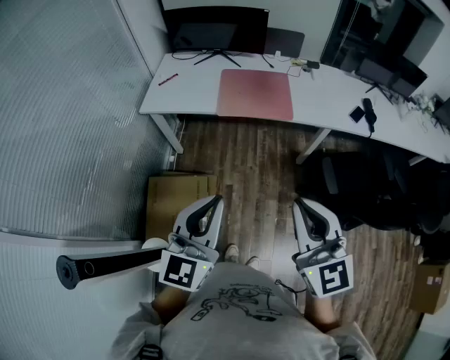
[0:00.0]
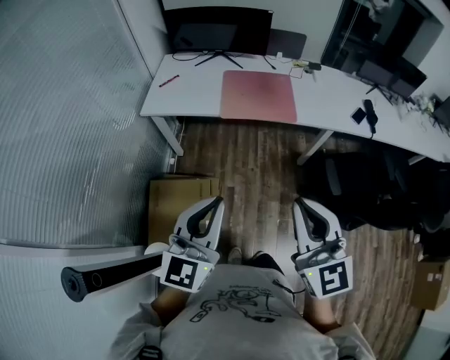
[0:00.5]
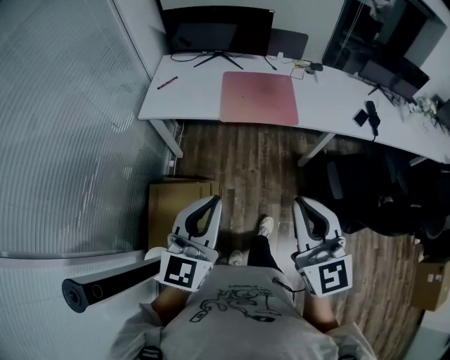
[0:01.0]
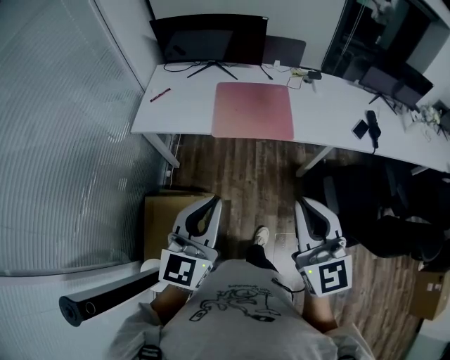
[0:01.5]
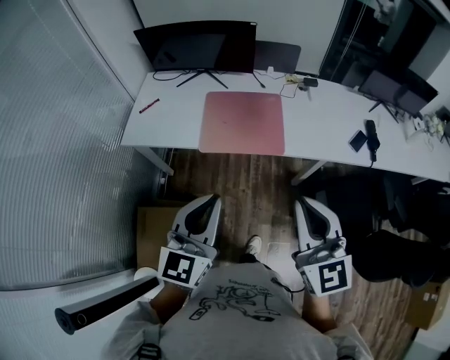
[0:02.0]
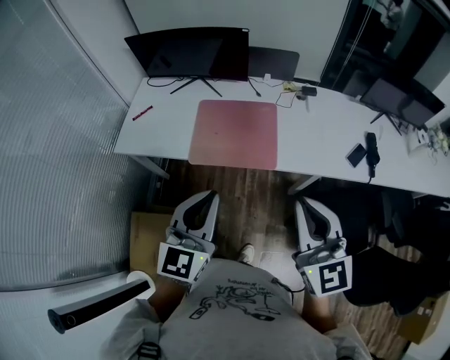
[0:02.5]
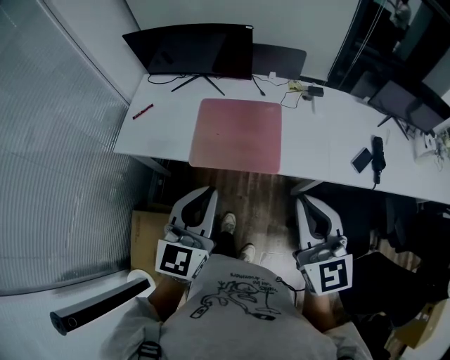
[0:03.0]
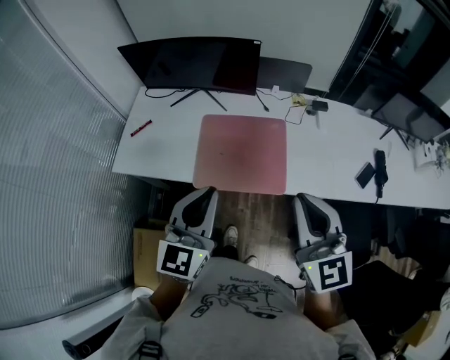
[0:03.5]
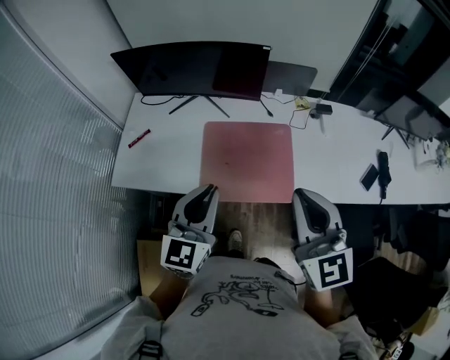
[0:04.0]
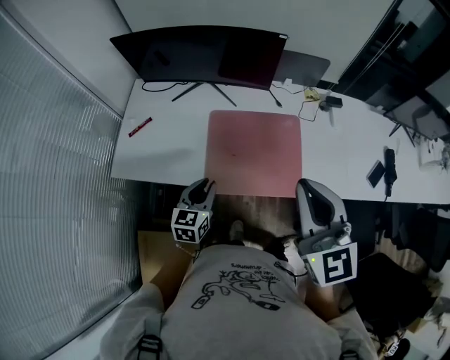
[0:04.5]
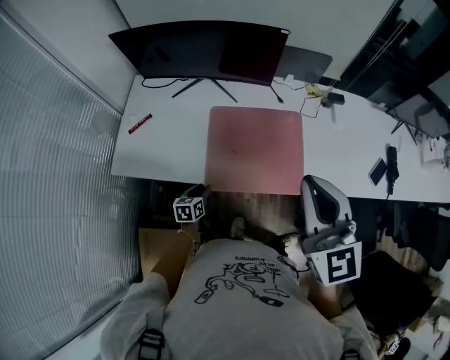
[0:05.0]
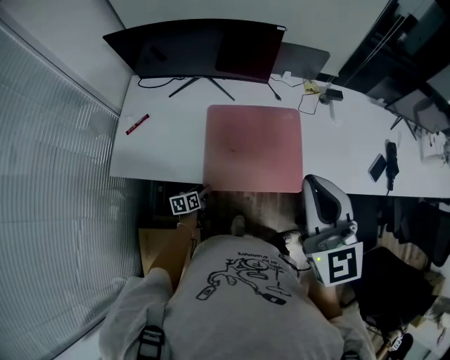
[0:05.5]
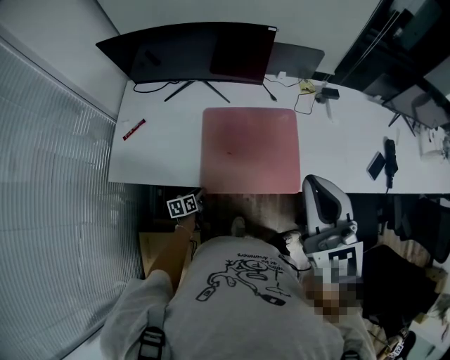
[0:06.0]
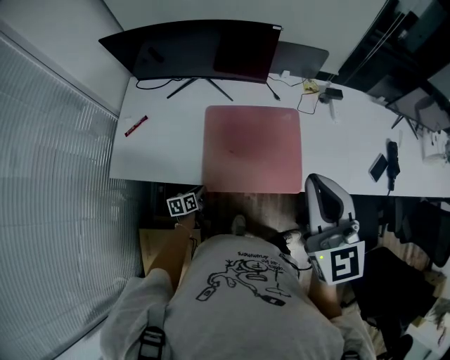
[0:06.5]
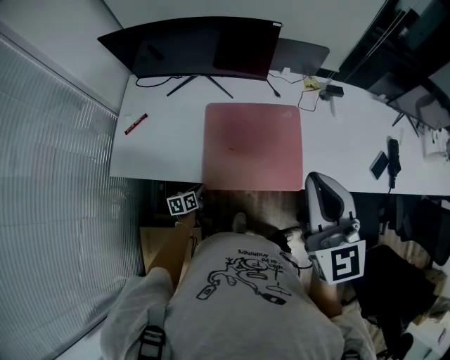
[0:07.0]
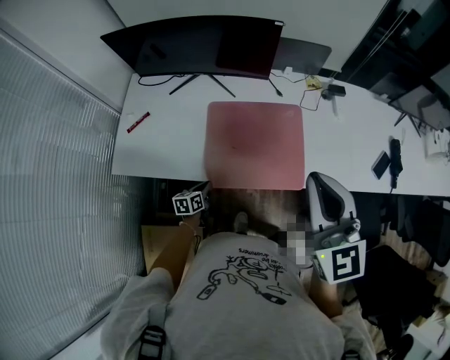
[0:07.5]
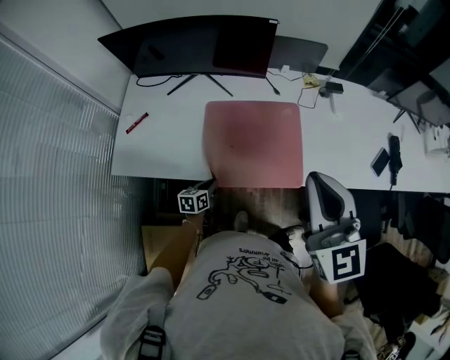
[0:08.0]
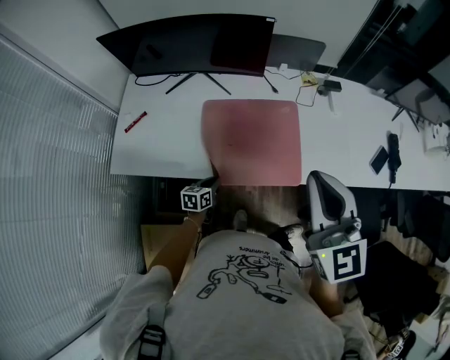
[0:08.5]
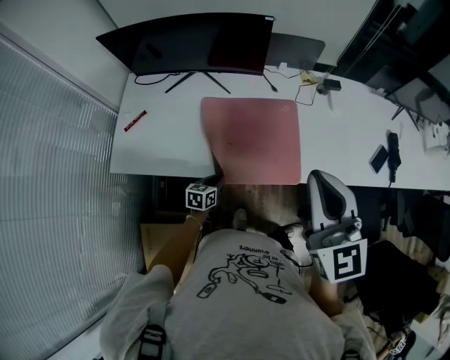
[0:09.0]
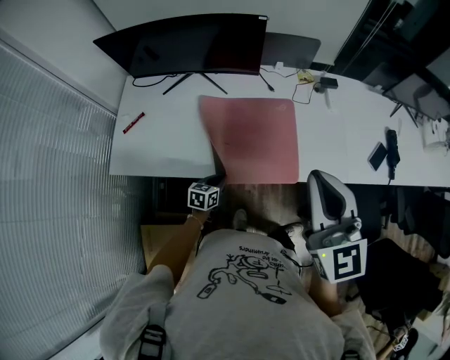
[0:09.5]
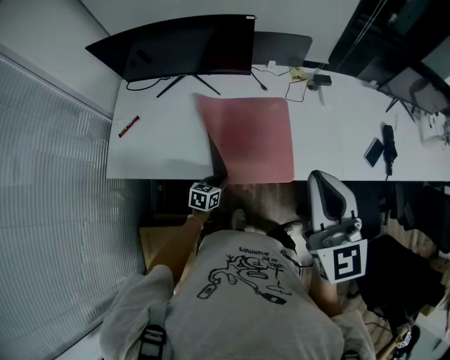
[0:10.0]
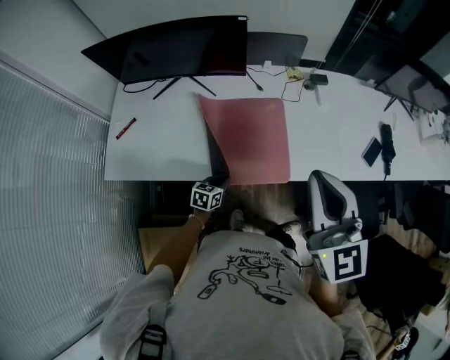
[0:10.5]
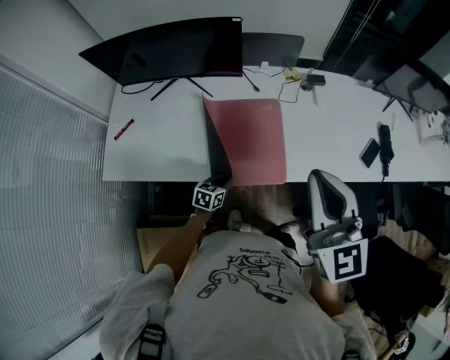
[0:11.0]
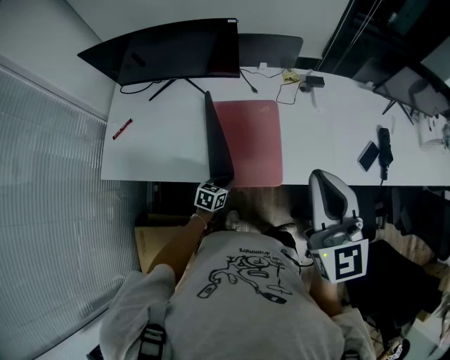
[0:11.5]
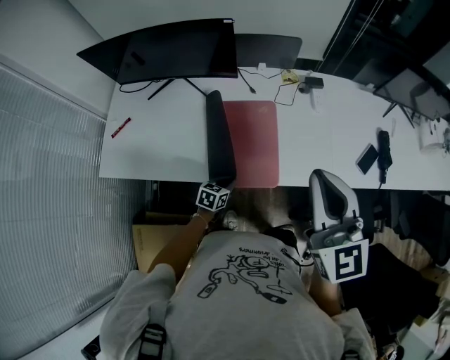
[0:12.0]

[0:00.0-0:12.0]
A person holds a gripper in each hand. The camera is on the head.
0:00.0 to 0:02.0: Both grippers travel together forward, about 25 cm.
0:02.0 to 0:04.0: The two grippers go roughly 30 cm forward.
0:04.0 to 0:06.0: The left gripper goes about 40 cm downward, tilts its fingers some 40 degrees downward, and opens, then closes once more. Meanwhile the right gripper changes place by approximately 5 cm.
0:06.0 to 0:08.0: The left gripper shifts approximately 5 cm to the right.
0:08.0 to 0:10.0: The right gripper moves some 5 cm. Meanwhile the left gripper heads to the right, covering some 10 cm.
0:10.0 to 0:12.0: The grippers both shift to the right by roughly 10 cm.

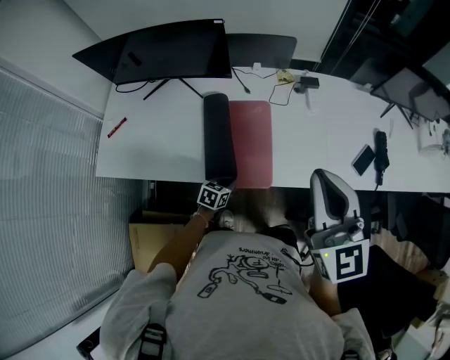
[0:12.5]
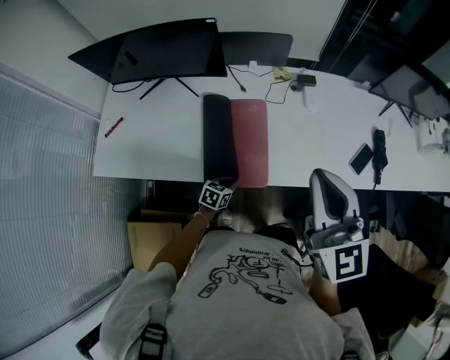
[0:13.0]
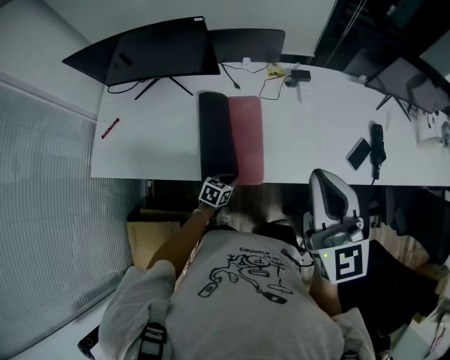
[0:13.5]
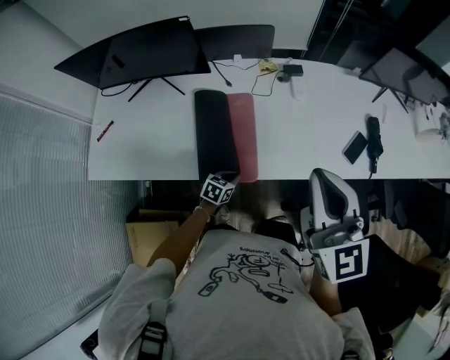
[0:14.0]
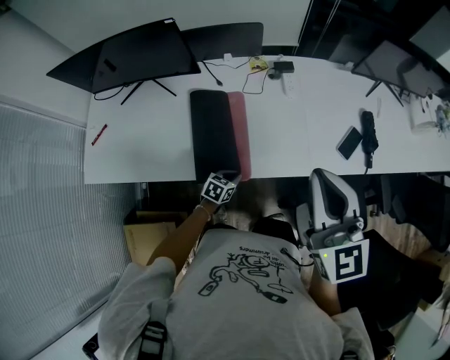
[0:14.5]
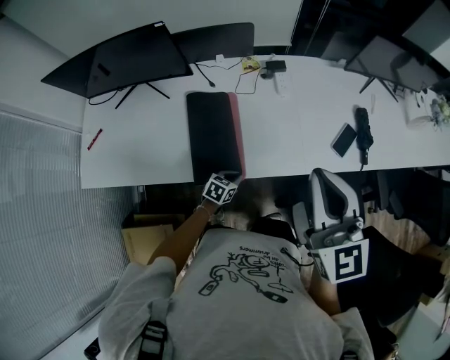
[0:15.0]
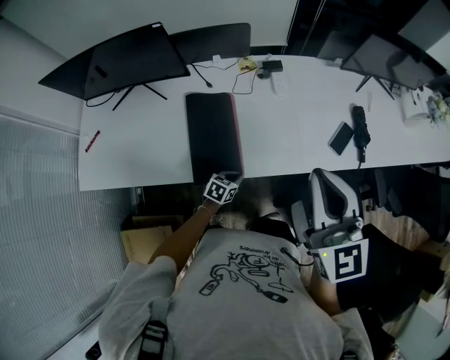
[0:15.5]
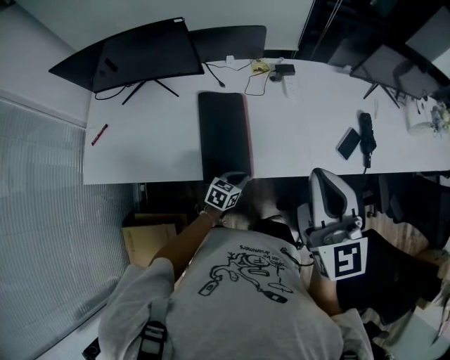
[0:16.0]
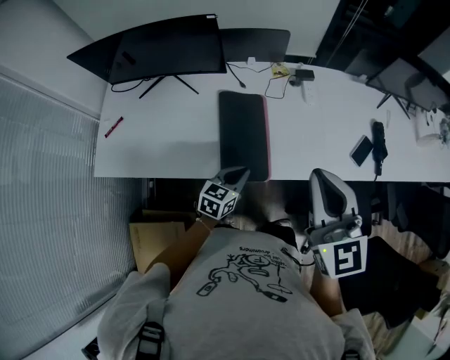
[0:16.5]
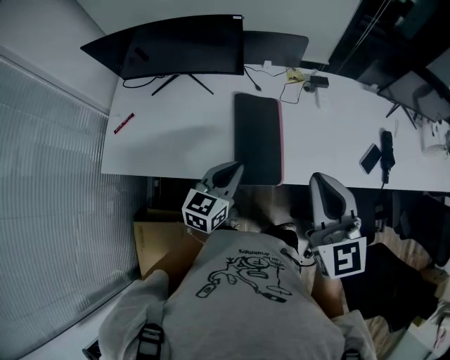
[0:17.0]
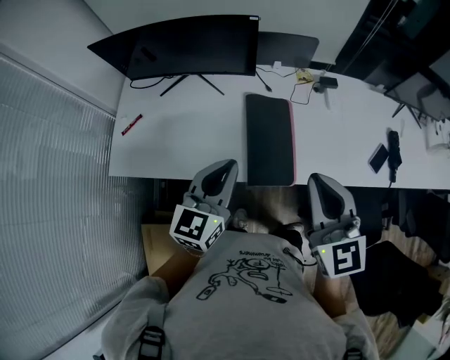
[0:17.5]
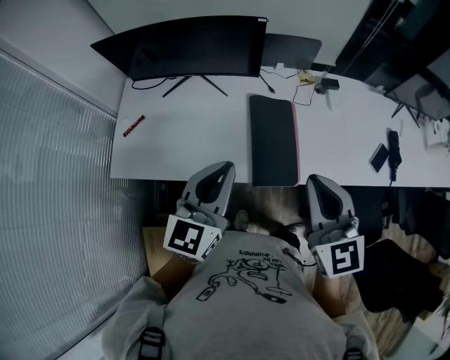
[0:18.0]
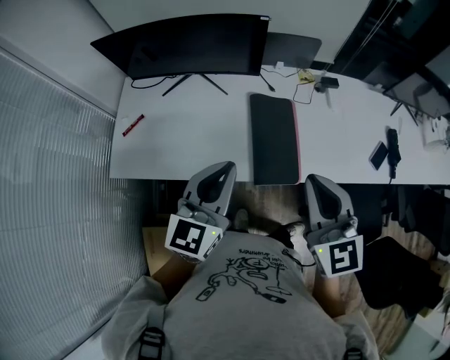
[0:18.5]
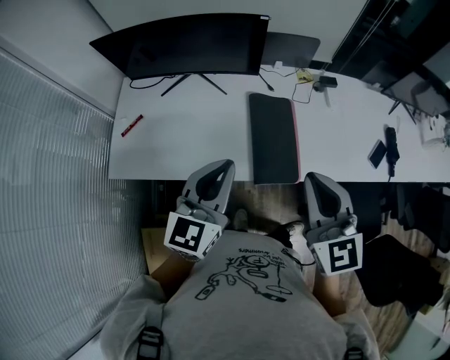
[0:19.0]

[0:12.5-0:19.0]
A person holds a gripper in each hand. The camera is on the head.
0:12.5 to 0:14.5: Both grippers move to the right, approximately 10 cm.
0:14.5 to 0:17.0: The left gripper shifts some 30 cm upward and to the left, and points its fingers about 30 degrees further upward. The right gripper is displaced to the left by about 15 cm.
0:17.0 to 0:19.0: The right gripper goes approximately 10 cm to the left. Meanwhile the left gripper goes roughly 20 cm upward and to the left.

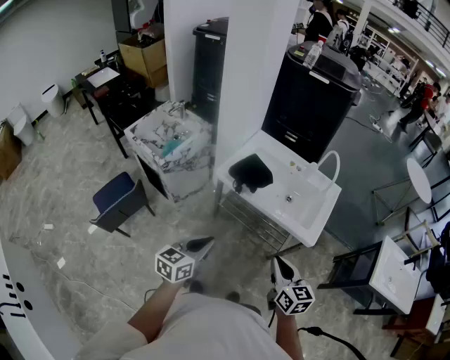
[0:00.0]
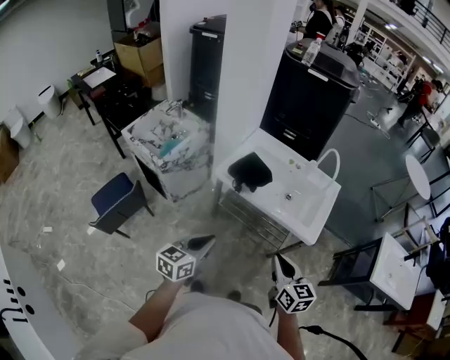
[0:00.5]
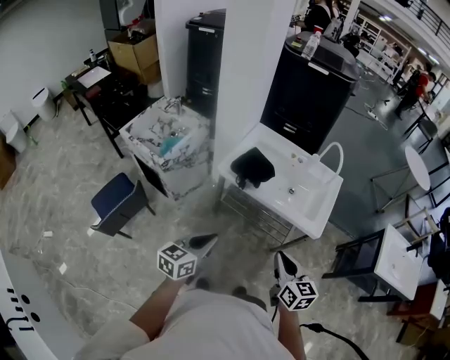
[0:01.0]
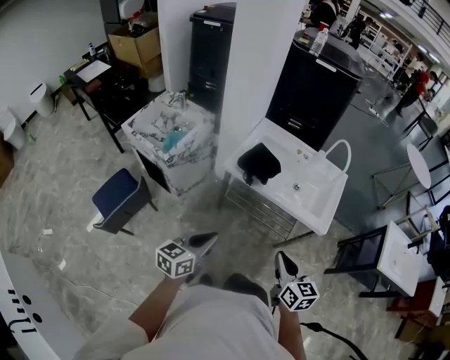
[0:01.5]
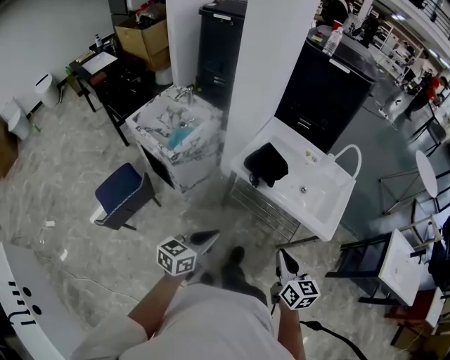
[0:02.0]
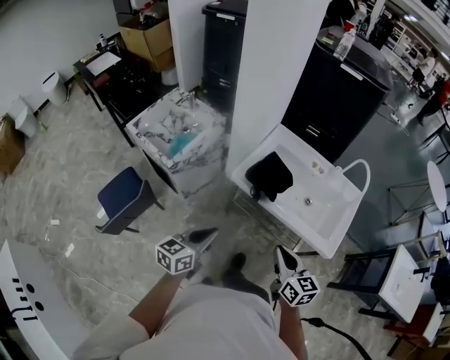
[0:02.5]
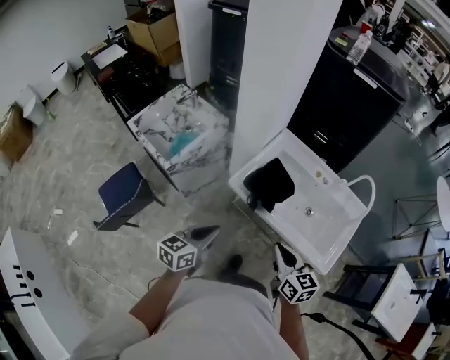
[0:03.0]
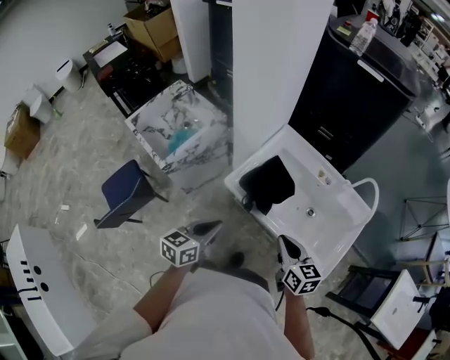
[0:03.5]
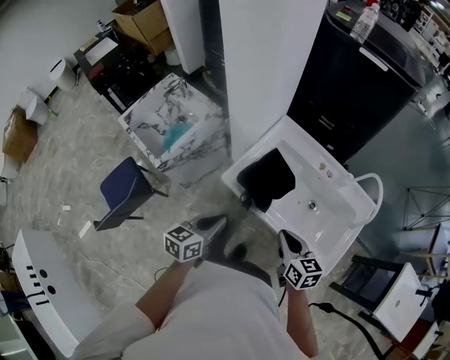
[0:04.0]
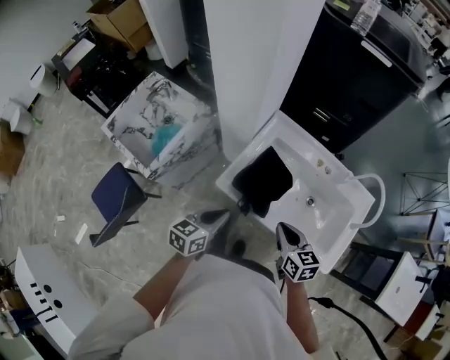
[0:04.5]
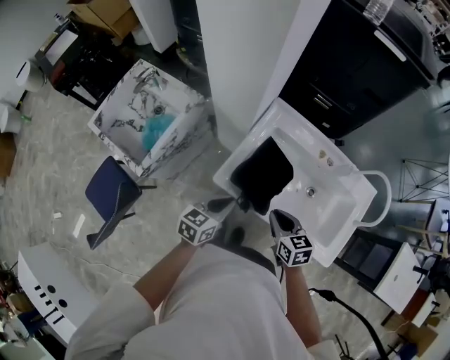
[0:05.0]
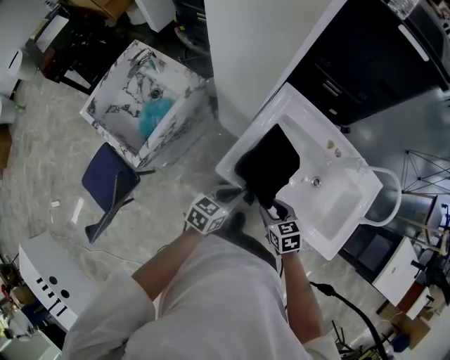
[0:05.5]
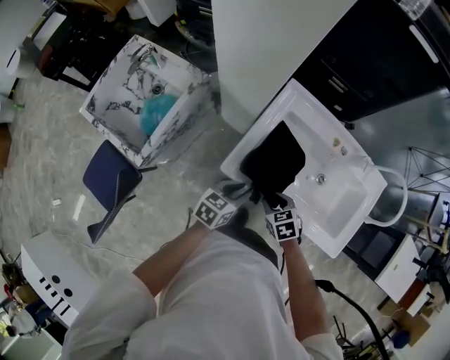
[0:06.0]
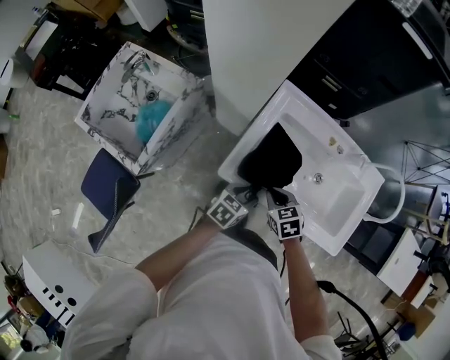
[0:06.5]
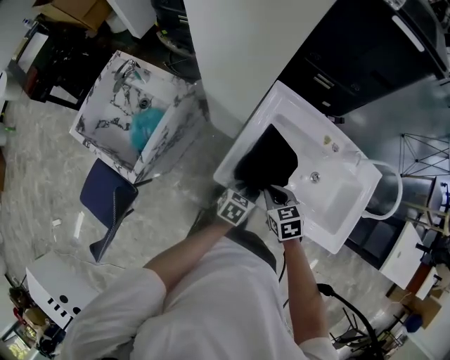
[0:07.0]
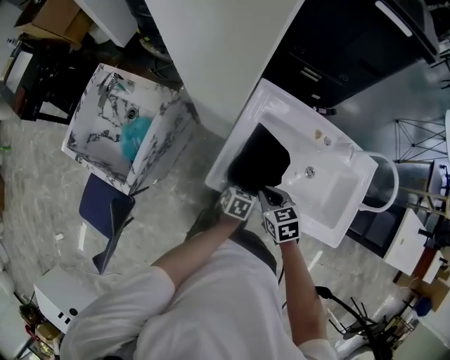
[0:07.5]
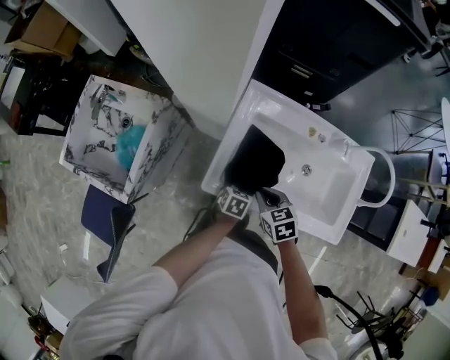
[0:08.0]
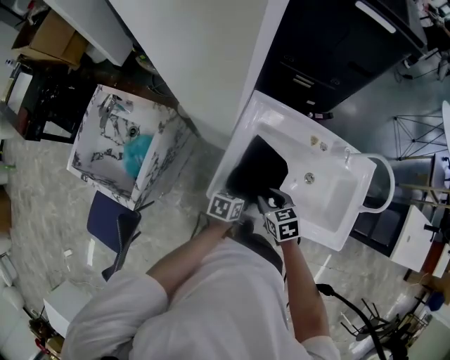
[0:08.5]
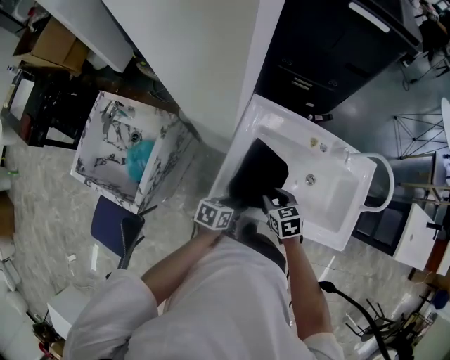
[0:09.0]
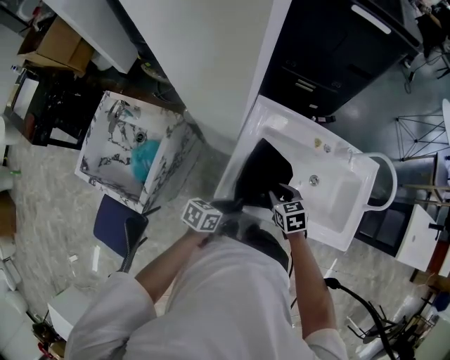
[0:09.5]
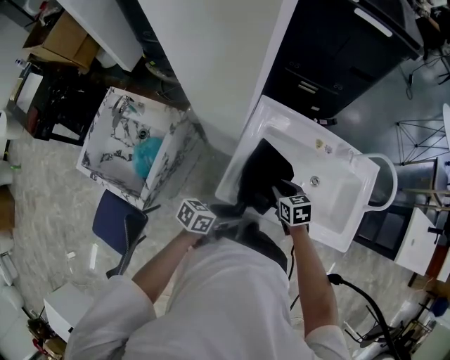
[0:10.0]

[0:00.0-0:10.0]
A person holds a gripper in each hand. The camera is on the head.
0:00.0 to 0:02.0: The two grippers go approximately 10 cm to the left.
0:02.0 to 0:04.0: The grippers both shift forward by about 30 cm.
0:04.0 to 0:06.0: The right gripper moves downward, forward and to the left, about 25 cm, angles its fingers downward, by approximately 30 degrees, and opens up; the left gripper heads downward and forward, covering some 25 cm, rotates about 20 degrees, and opens up.
0:06.0 to 0:08.0: The left gripper heads downward, to the right and forward, covering approximately 15 cm, turns by approximately 20 degrees, and opens its fingers; the right gripper goes roughly 10 cm forward and upward, and closes.
0:08.0 to 0:10.0: The right gripper opens its fingers. The left gripper travels upward, backward and to the left by some 15 cm, and changes its angle by approximately 40 degrees.
